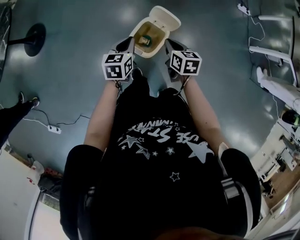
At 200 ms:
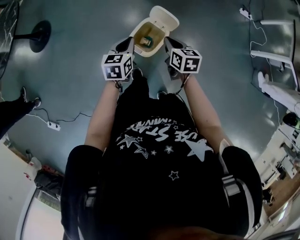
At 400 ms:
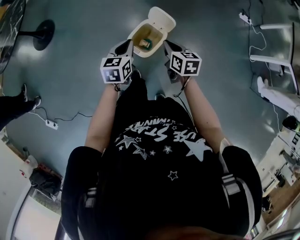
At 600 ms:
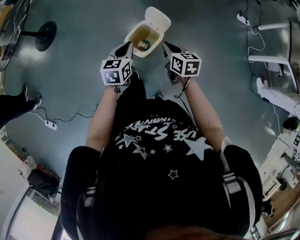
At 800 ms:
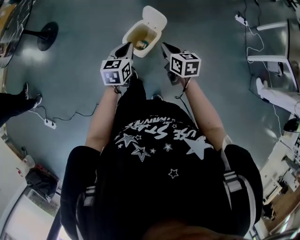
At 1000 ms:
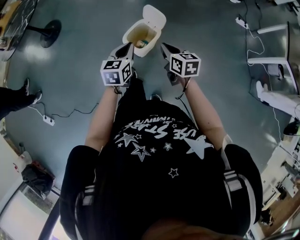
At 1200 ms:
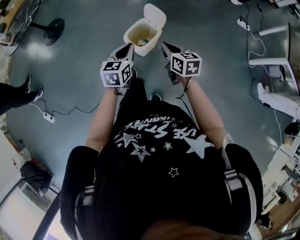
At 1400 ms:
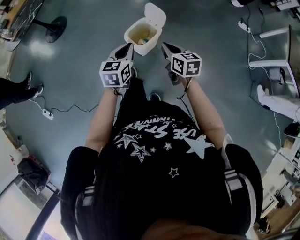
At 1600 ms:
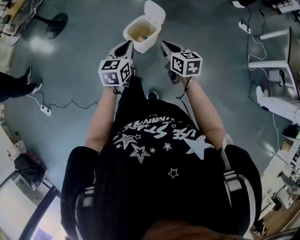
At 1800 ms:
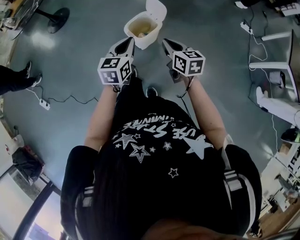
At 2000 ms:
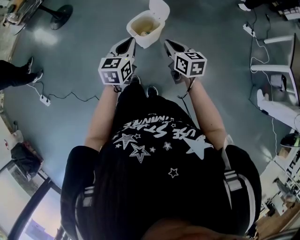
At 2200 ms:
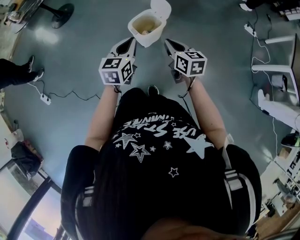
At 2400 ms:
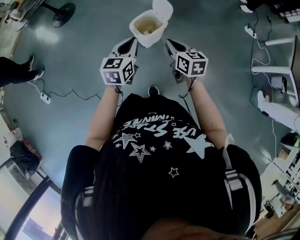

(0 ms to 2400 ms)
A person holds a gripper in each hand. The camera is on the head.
0 ms - 1200 ms: Both grippers travel together backward and upward, some 20 cm.
1200 ms - 2400 ms: The grippers both shift backward by roughly 10 cm.

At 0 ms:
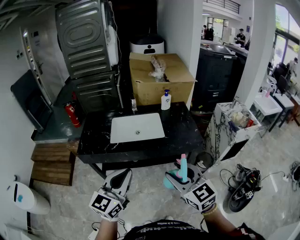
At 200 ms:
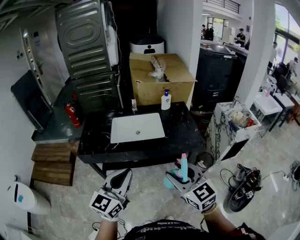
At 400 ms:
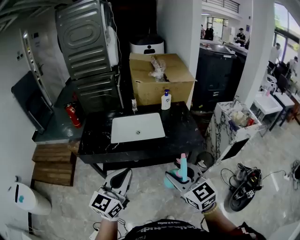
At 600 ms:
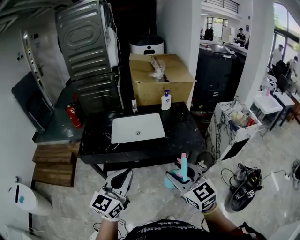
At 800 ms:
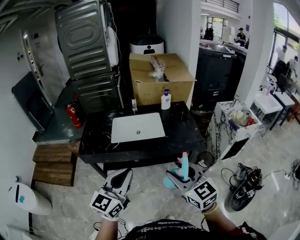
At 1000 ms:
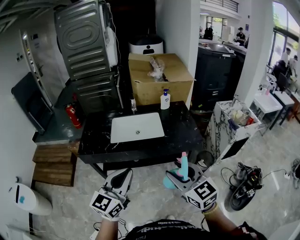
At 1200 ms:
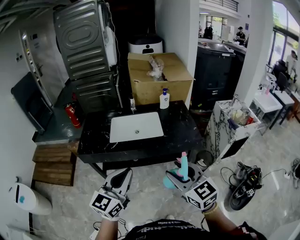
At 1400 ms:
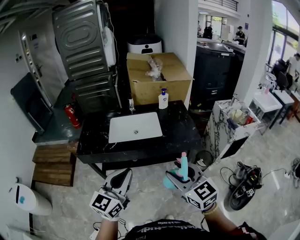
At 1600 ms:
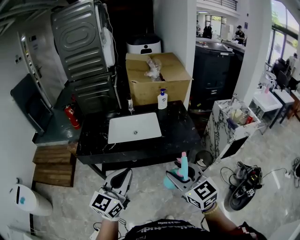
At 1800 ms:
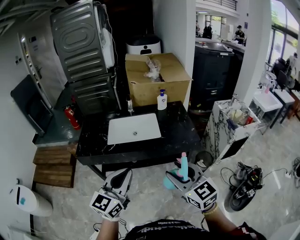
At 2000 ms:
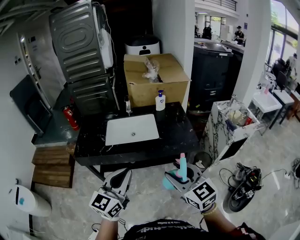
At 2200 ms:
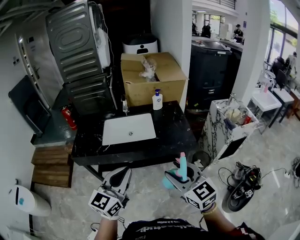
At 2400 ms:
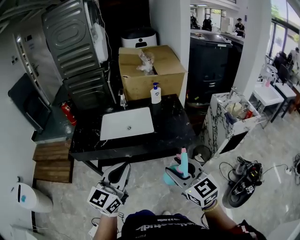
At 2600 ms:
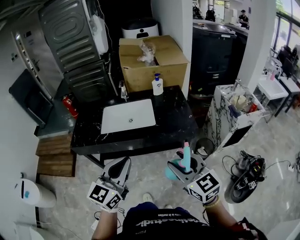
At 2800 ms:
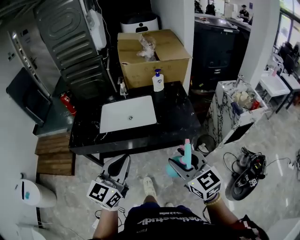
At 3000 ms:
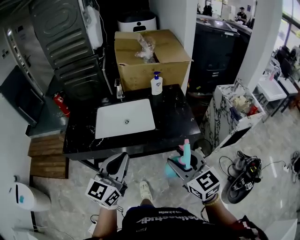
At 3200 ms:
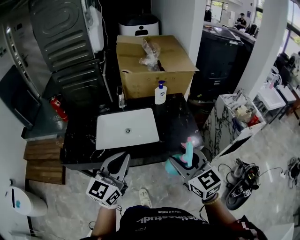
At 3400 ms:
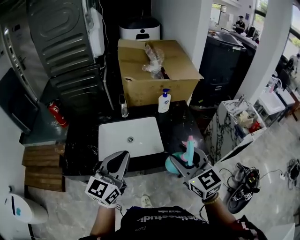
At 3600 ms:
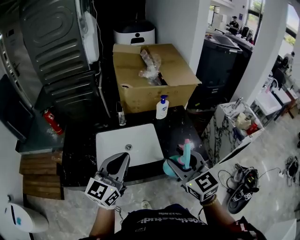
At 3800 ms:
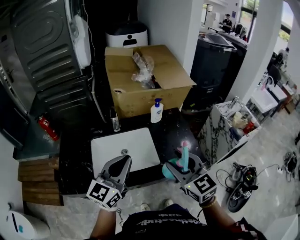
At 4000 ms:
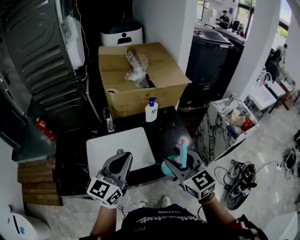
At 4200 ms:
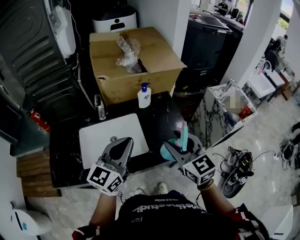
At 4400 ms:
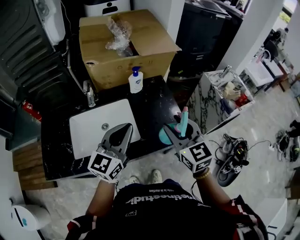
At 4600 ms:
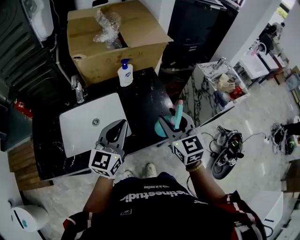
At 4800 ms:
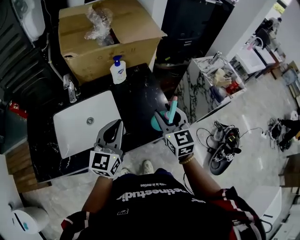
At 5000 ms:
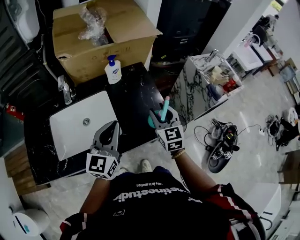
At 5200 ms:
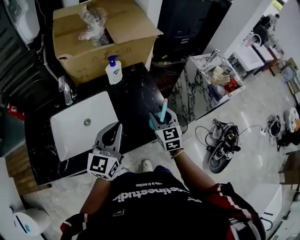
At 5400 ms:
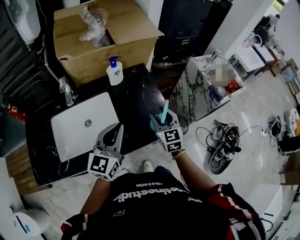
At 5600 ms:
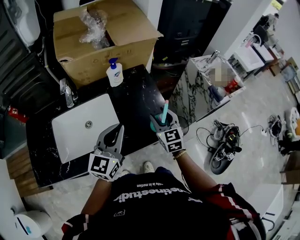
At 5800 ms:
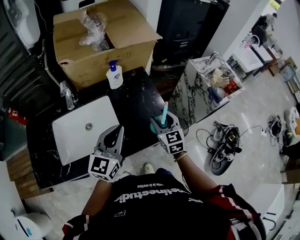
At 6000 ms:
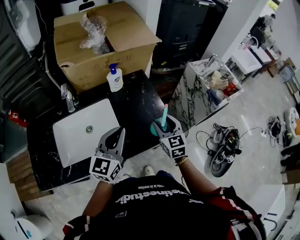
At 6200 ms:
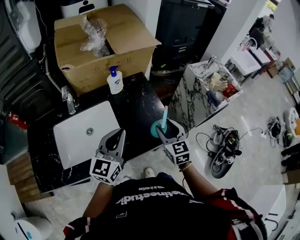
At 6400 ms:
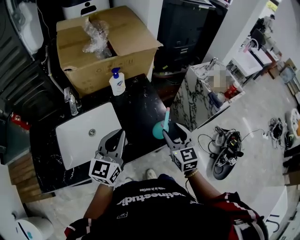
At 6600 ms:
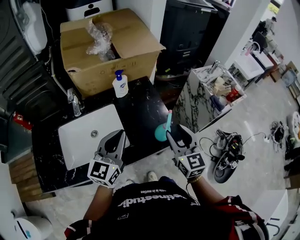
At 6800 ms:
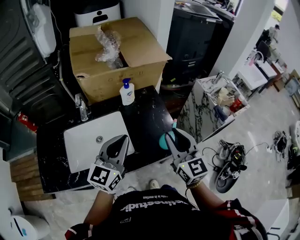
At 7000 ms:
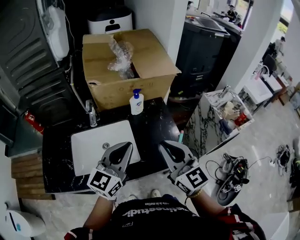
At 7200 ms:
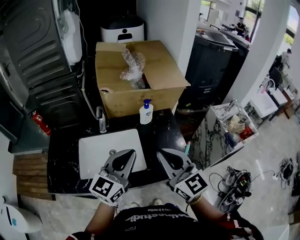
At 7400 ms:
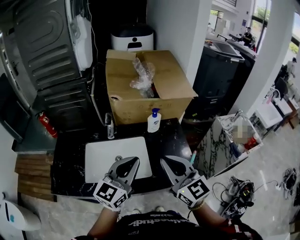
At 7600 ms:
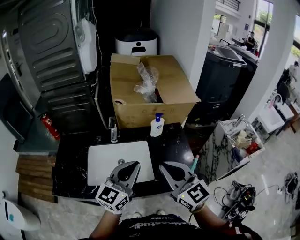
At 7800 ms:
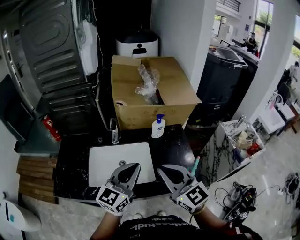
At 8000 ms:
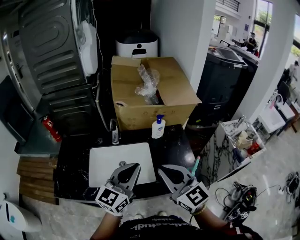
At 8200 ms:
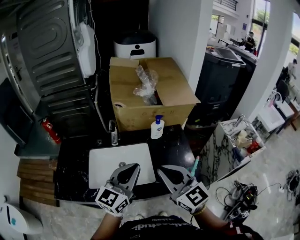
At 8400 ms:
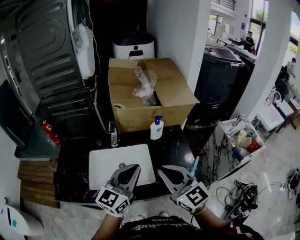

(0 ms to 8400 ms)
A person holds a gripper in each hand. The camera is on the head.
0 ms - 1400 ms: The grippers make only small movements.
1400 ms - 2800 ms: The grippers both shift to the right and forward by some 10 cm.
2800 ms - 4200 ms: The two grippers go some 30 cm forward.
4200 ms - 5600 ms: The right gripper moves downward, forward and to the right, approximately 25 cm, while the left gripper goes approximately 15 cm downward, to the right and forward.
5600 ms - 7000 ms: The left gripper moves upward, some 10 cm, while the right gripper travels upward, backward and to the left by some 25 cm, swivels some 30 degrees, and closes.
7000 ms - 8400 ms: The grippers both shift to the left by approximately 5 cm.

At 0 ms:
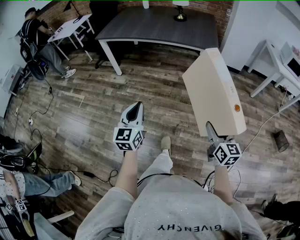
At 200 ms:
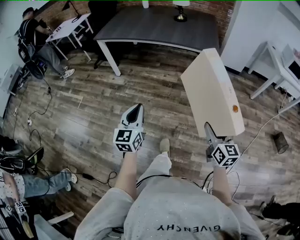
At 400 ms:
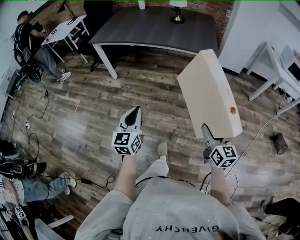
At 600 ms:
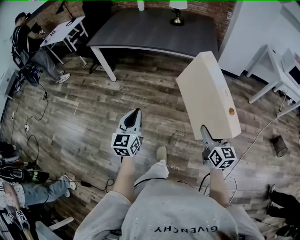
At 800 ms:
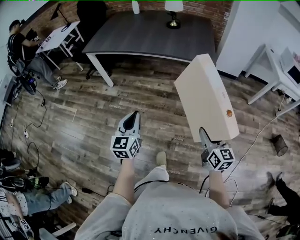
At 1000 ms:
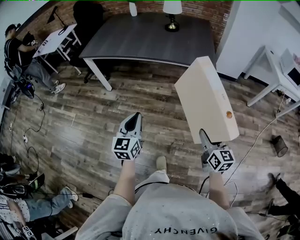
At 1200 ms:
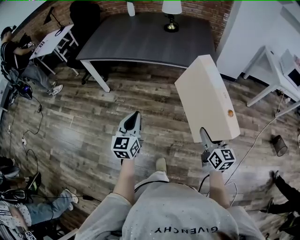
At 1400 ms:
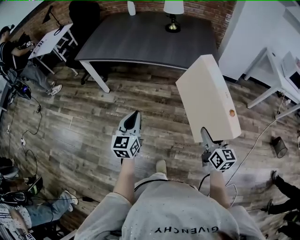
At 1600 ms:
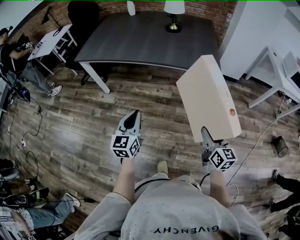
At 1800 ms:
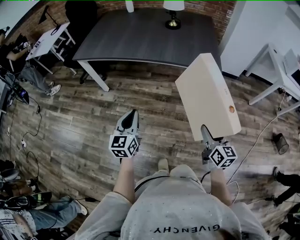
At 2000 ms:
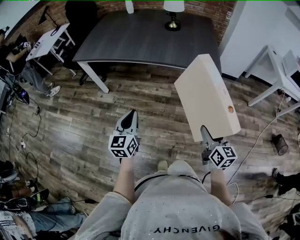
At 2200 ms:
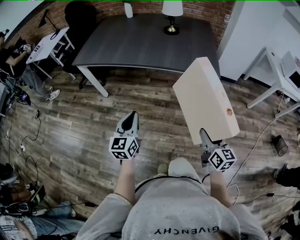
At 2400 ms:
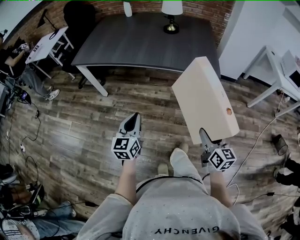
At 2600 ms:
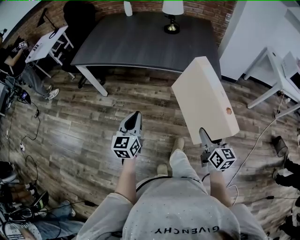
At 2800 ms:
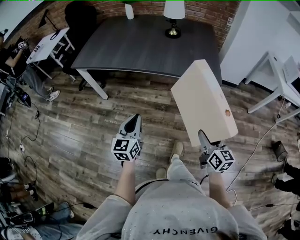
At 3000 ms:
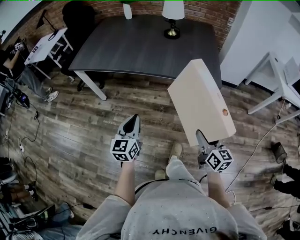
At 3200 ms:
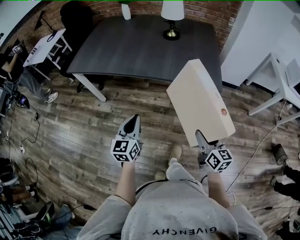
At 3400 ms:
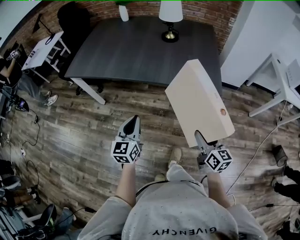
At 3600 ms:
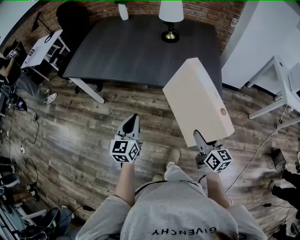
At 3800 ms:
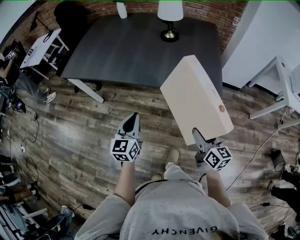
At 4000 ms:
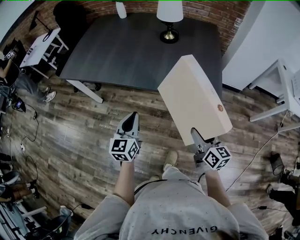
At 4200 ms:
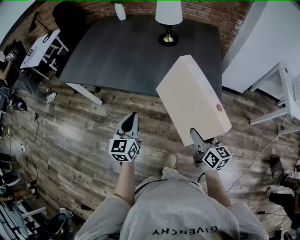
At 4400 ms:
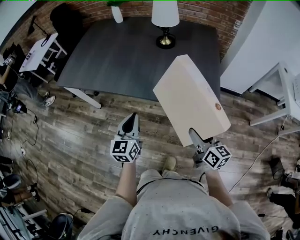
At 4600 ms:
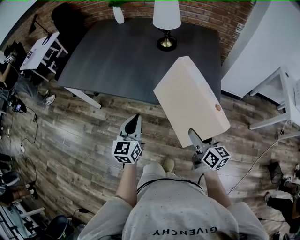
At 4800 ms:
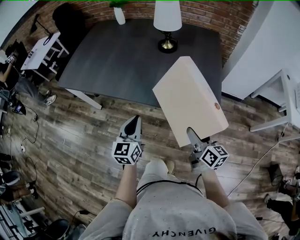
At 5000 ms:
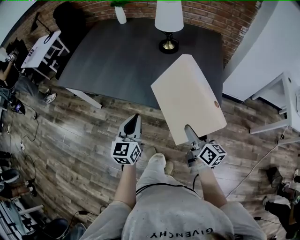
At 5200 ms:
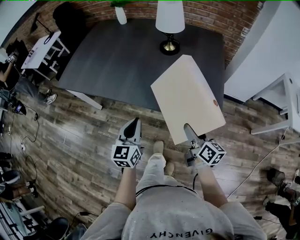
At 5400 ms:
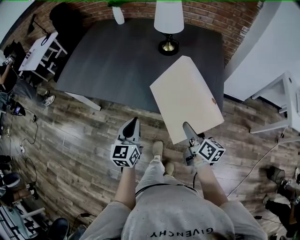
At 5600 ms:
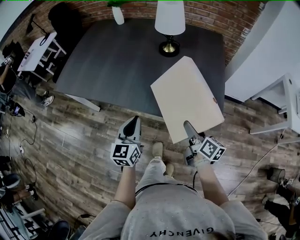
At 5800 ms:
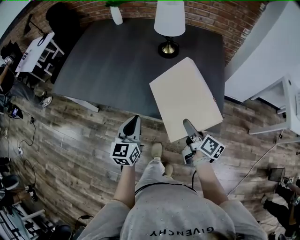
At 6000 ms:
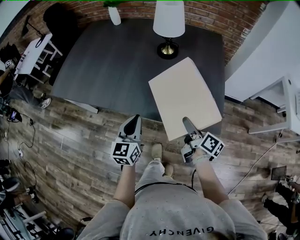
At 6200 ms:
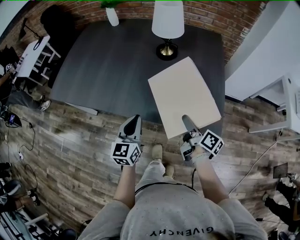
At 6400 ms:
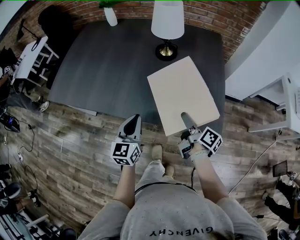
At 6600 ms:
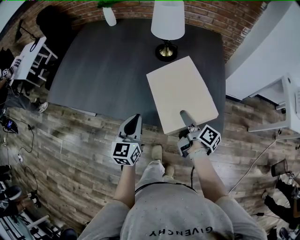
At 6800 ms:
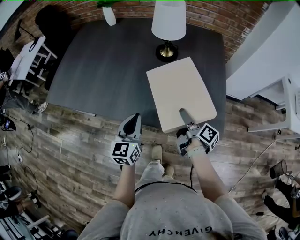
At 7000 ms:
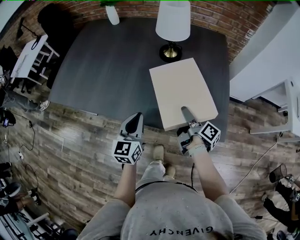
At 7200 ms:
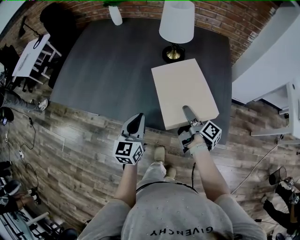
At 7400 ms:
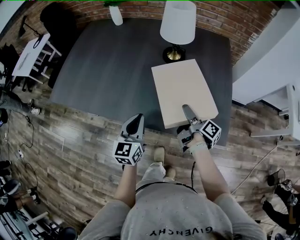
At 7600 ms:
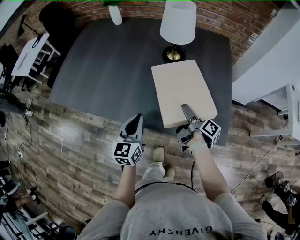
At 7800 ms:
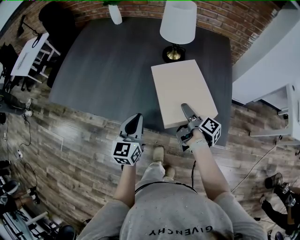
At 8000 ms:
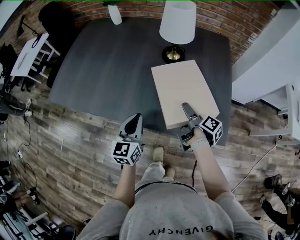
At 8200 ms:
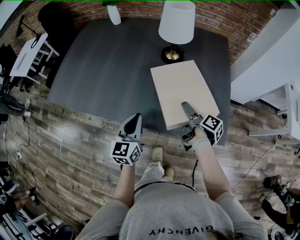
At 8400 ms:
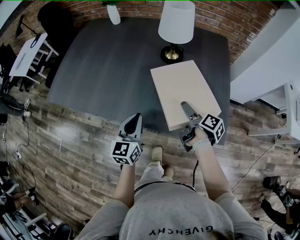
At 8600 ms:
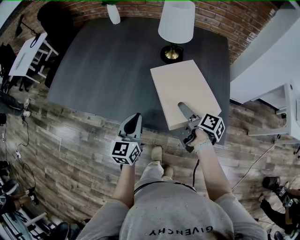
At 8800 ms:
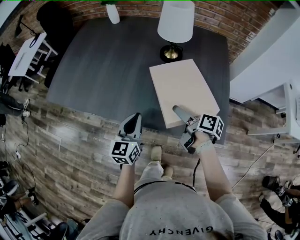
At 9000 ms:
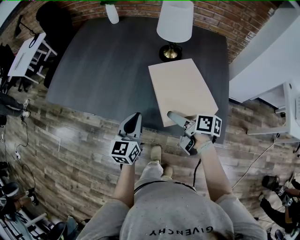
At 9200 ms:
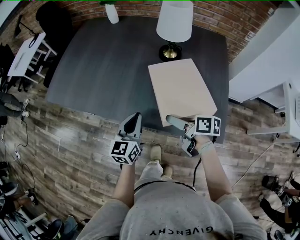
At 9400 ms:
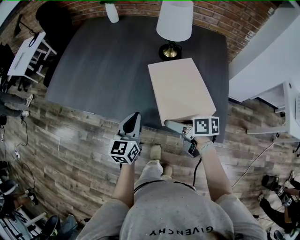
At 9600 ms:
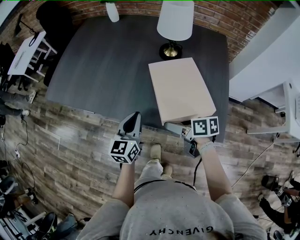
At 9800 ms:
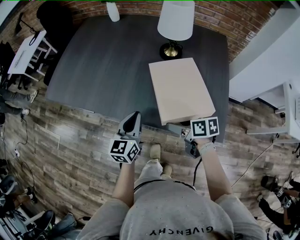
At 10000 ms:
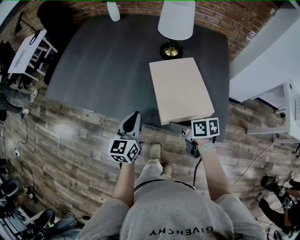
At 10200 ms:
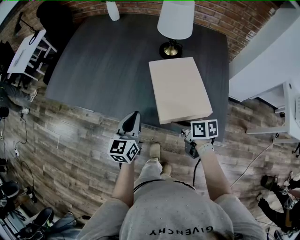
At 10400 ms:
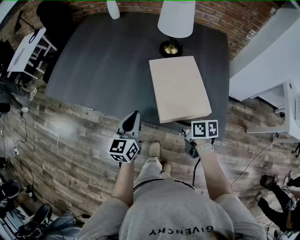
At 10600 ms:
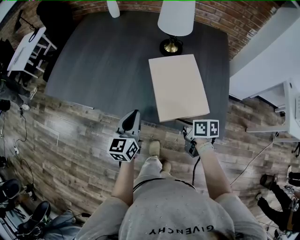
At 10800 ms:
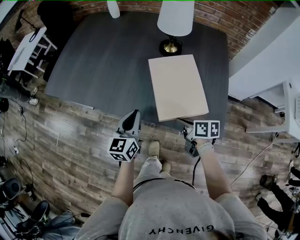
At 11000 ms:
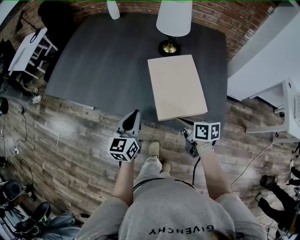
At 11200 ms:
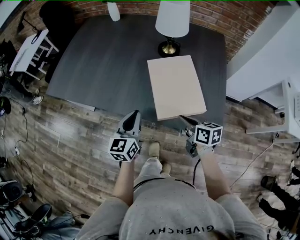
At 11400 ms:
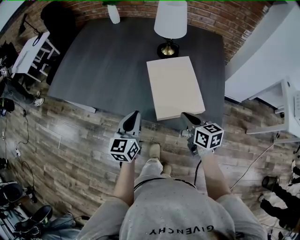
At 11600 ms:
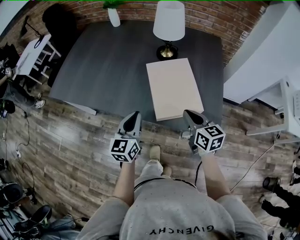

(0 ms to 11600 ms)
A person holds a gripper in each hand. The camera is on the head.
0 ms - 1400 ms: The grippers both shift forward by approximately 30 cm.
1400 ms - 2800 ms: The grippers both shift forward by about 10 cm.
2800 ms - 4400 ms: The right gripper shifts approximately 25 cm forward, while the left gripper is displaced forward and to the right by approximately 25 cm.
4400 ms - 5800 ms: The two grippers go about 10 cm forward. The right gripper rotates roughly 30 degrees.
5800 ms - 7200 ms: The two grippers go some 10 cm forward. The right gripper turns by roughly 30 degrees.
7200 ms - 8800 ms: The right gripper turns by some 30 degrees, and opens up.
8800 ms - 10200 ms: The right gripper heads backward, covering approximately 5 cm, changes its angle by some 30 degrees, and closes its fingers.
10200 ms - 11600 ms: The right gripper goes roughly 10 cm upward and to the right, and turns by about 40 degrees; the left gripper changes place by some 5 cm.

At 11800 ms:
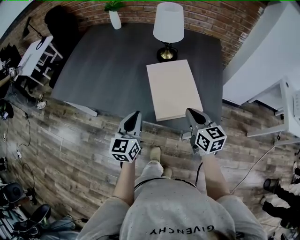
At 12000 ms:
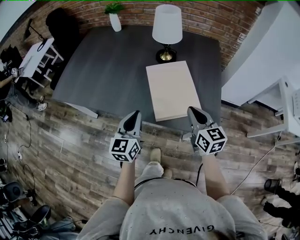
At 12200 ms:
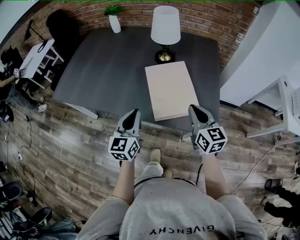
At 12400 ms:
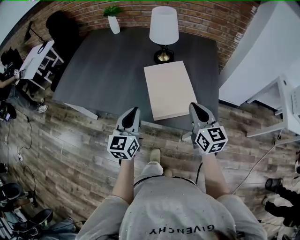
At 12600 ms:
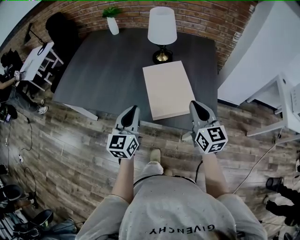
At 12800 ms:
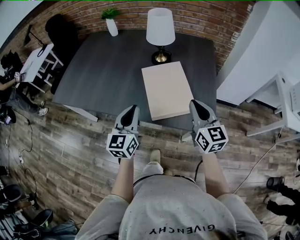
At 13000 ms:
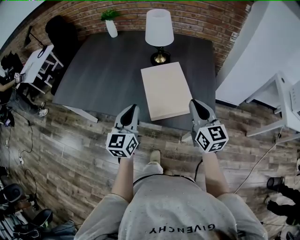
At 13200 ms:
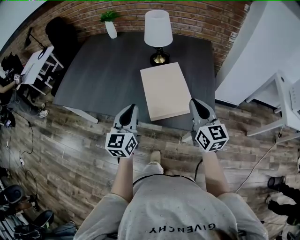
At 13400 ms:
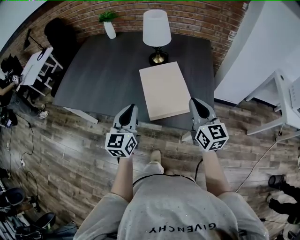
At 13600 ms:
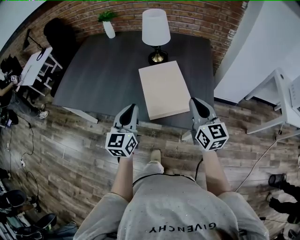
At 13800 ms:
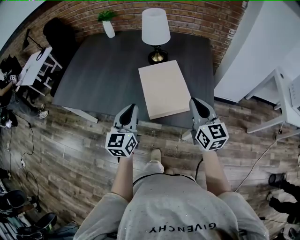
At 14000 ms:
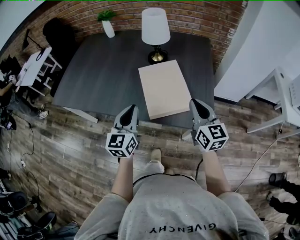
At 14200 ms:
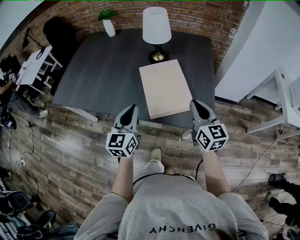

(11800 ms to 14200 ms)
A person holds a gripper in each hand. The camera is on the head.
11800 ms - 13000 ms: The grippers both shift upward by roughly 5 cm.
13000 ms - 14200 ms: The grippers make only small movements.
